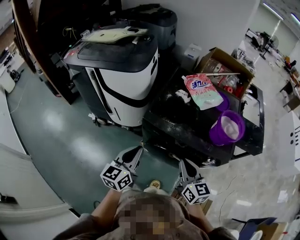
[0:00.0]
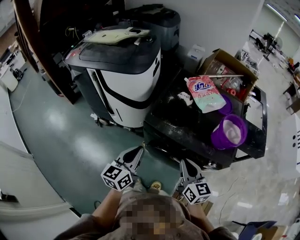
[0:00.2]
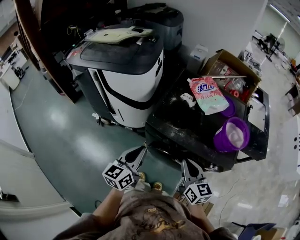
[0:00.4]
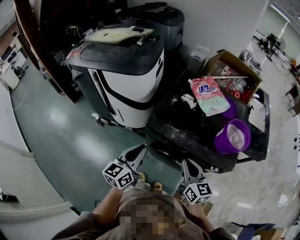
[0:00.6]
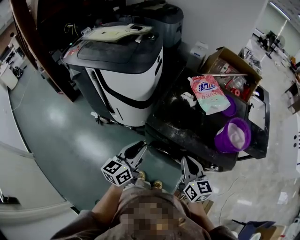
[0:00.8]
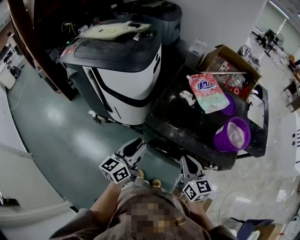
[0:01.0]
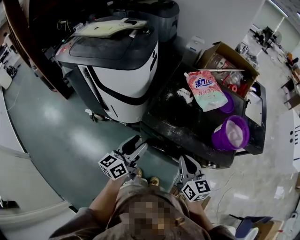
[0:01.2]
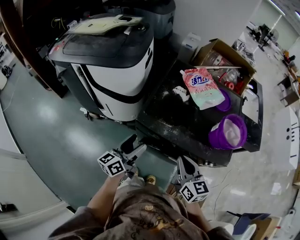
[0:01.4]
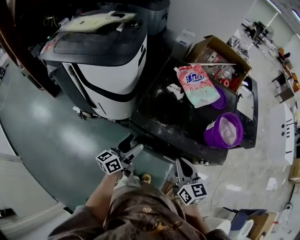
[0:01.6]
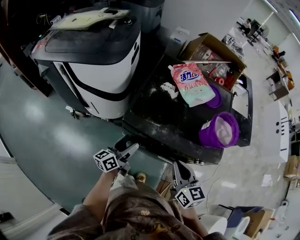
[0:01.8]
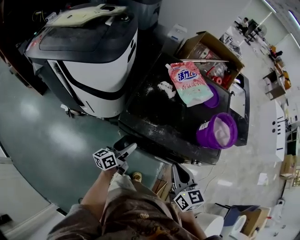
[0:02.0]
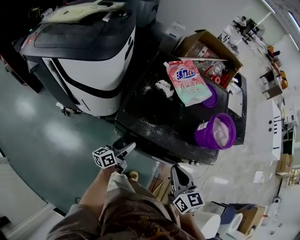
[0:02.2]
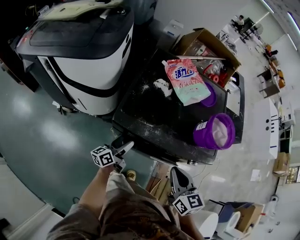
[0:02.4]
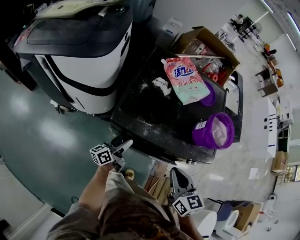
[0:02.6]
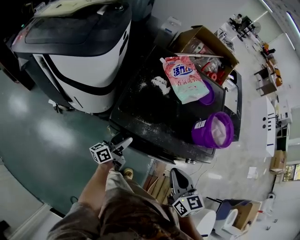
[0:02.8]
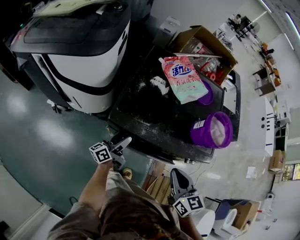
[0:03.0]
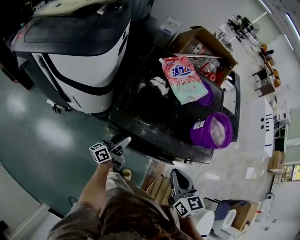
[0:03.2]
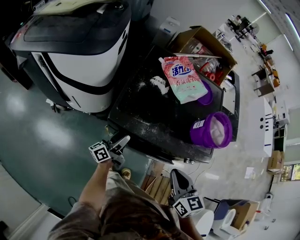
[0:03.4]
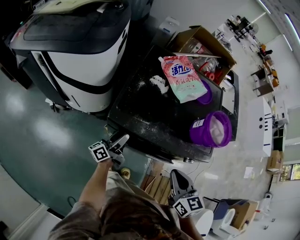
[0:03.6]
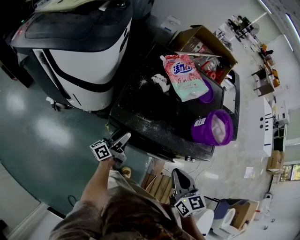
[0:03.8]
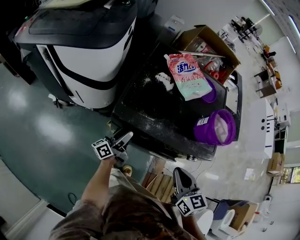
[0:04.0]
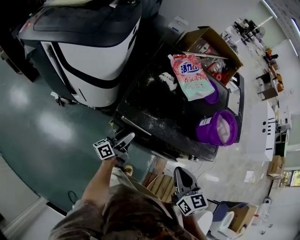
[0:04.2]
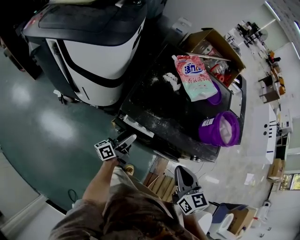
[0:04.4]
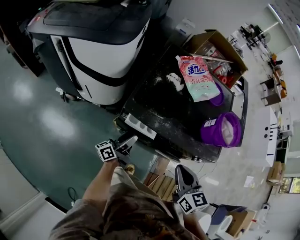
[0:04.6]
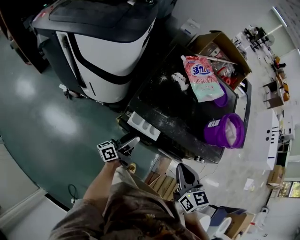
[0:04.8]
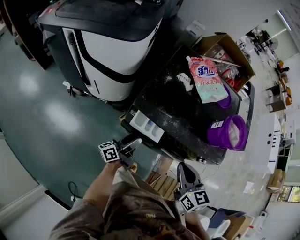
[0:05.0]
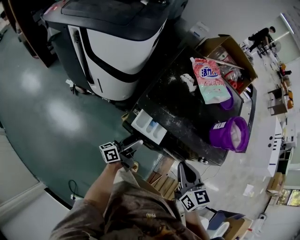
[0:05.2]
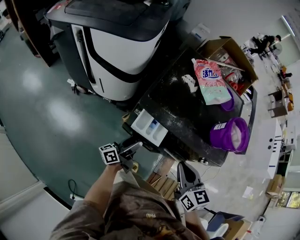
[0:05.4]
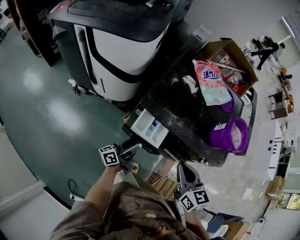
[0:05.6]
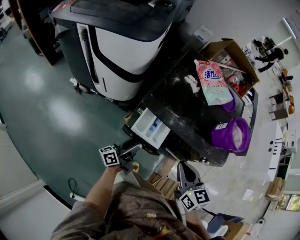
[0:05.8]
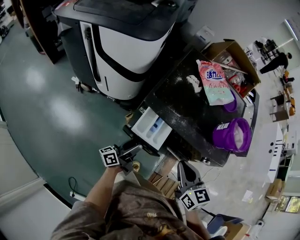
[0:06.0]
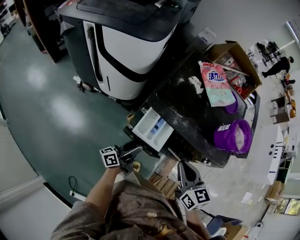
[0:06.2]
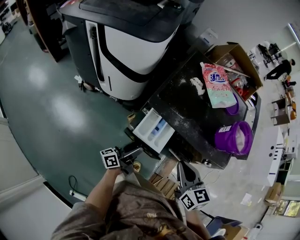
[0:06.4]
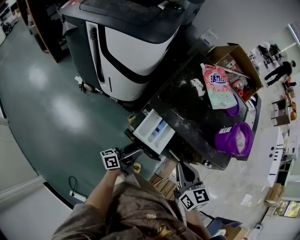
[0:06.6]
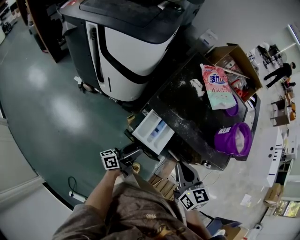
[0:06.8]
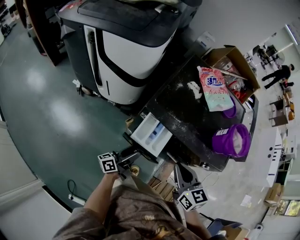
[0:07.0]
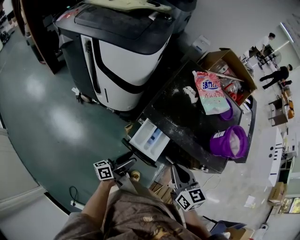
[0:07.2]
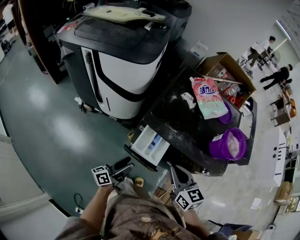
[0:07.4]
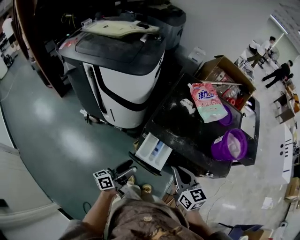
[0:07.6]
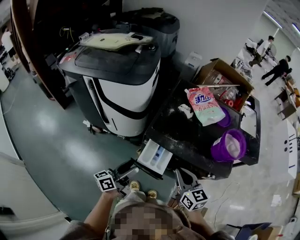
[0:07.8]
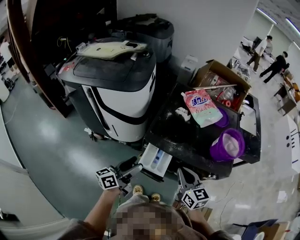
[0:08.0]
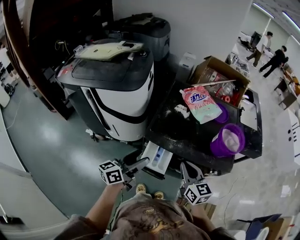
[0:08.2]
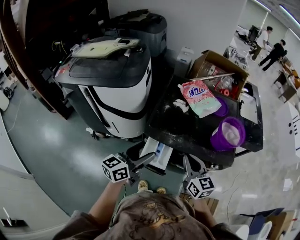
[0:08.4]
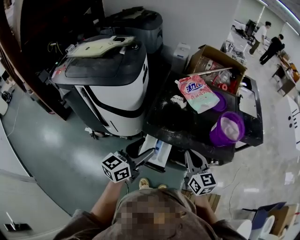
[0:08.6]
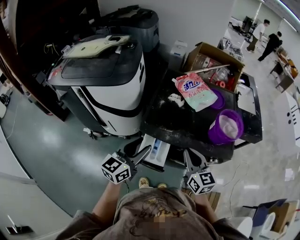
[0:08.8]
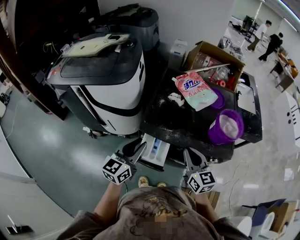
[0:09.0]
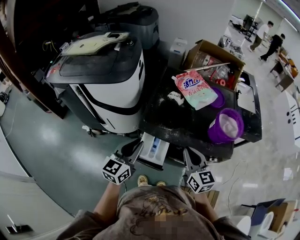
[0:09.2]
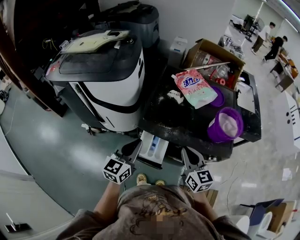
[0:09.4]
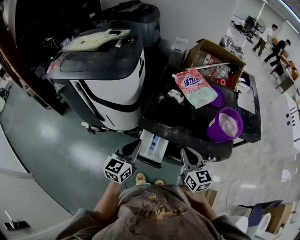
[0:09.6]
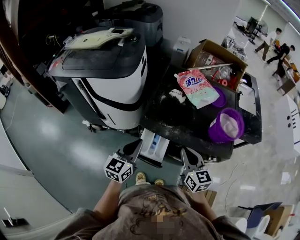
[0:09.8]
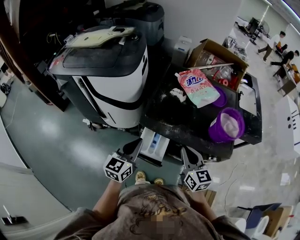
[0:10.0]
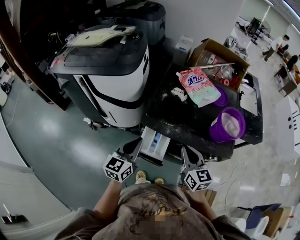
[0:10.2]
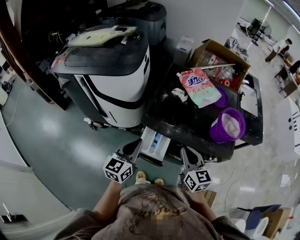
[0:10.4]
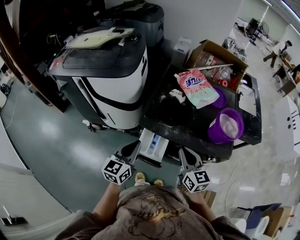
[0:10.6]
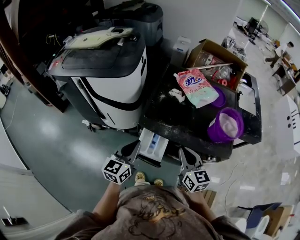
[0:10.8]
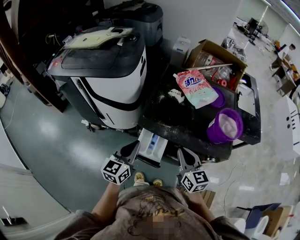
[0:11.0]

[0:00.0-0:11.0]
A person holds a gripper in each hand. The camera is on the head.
0:00.0 to 0:01.6: The left gripper heads downward and forward, covering approximately 15 cm, changes its angle by approximately 30 degrees, and opens its fingers; the right gripper heads forward, covering approximately 5 cm.
0:01.6 to 0:03.2: The left gripper heads downward and forward, covering approximately 15 cm. The right gripper changes place by about 5 cm.
0:03.2 to 0:04.8: The left gripper goes about 5 cm backward.
0:04.8 to 0:06.2: The left gripper goes roughly 10 cm backward.
0:06.2 to 0:07.8: The left gripper travels upward and to the left by roughly 15 cm; the right gripper ends up approximately 5 cm from where it was.
0:07.8 to 0:09.4: The left gripper heads upward and forward, covering about 10 cm, rotates around the line of its fingers by about 40 degrees, clockwise from behind, and closes. The right gripper ends up about 5 cm from where it was.
0:09.4 to 0:11.0: The grippers make only small movements.

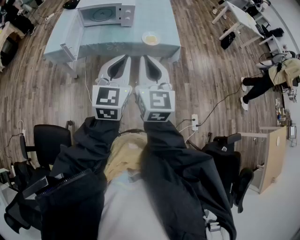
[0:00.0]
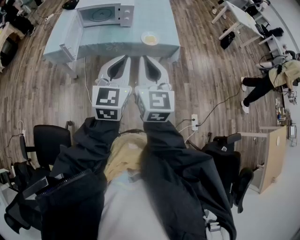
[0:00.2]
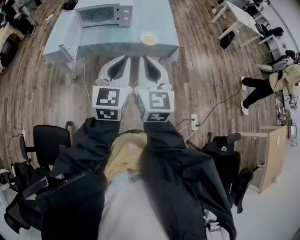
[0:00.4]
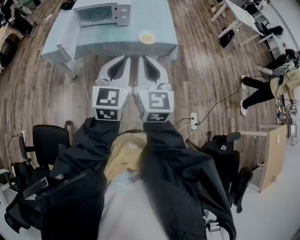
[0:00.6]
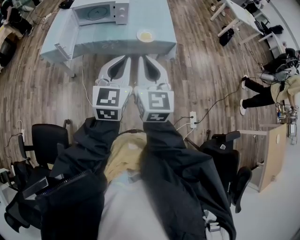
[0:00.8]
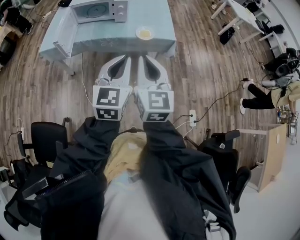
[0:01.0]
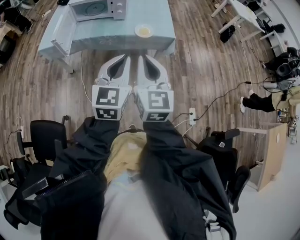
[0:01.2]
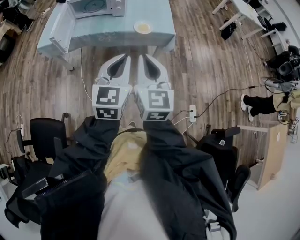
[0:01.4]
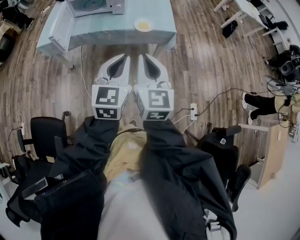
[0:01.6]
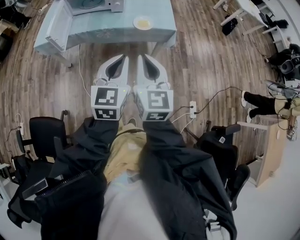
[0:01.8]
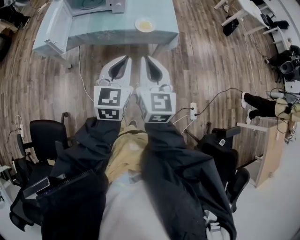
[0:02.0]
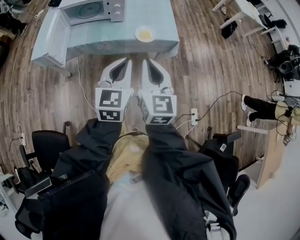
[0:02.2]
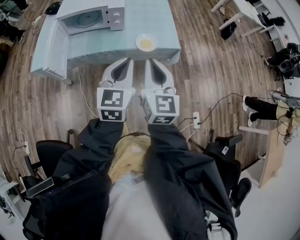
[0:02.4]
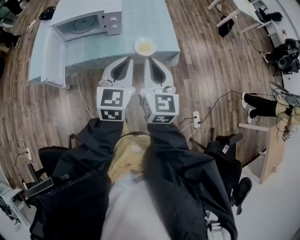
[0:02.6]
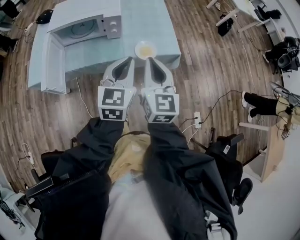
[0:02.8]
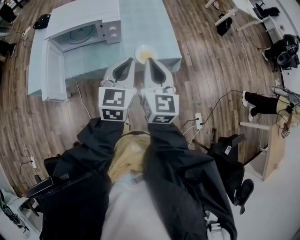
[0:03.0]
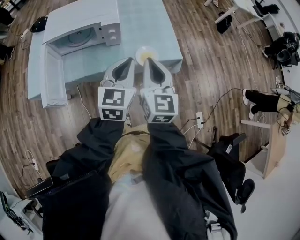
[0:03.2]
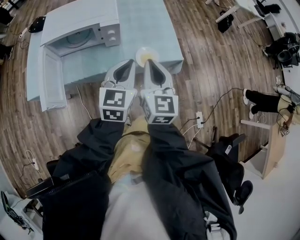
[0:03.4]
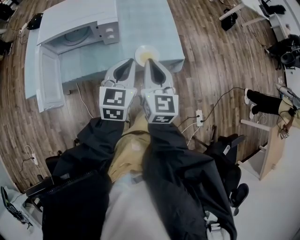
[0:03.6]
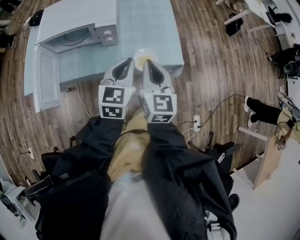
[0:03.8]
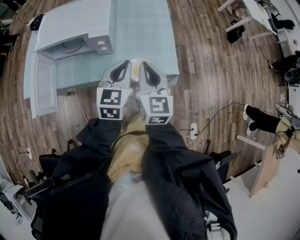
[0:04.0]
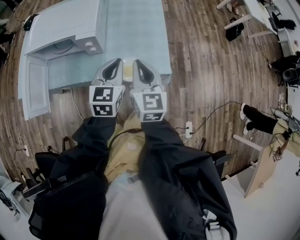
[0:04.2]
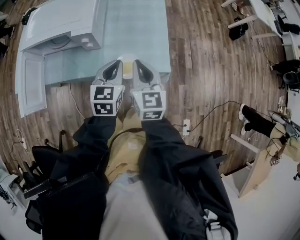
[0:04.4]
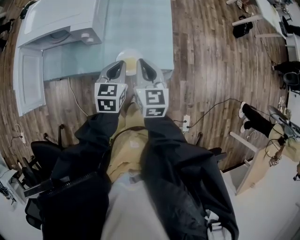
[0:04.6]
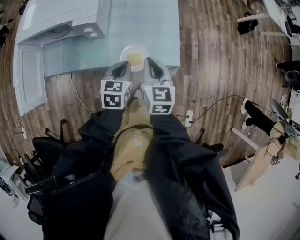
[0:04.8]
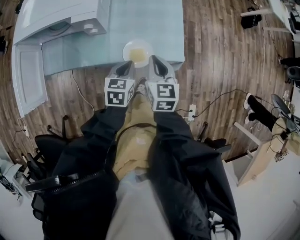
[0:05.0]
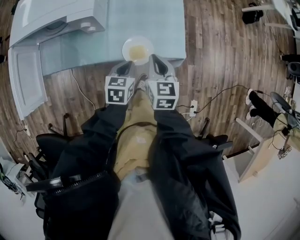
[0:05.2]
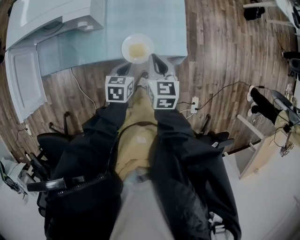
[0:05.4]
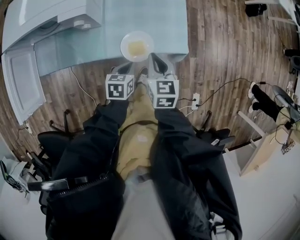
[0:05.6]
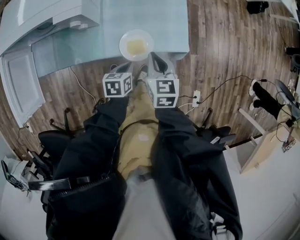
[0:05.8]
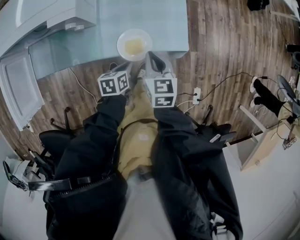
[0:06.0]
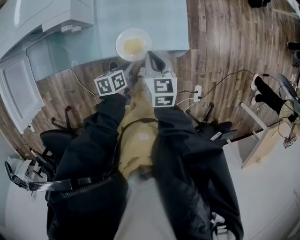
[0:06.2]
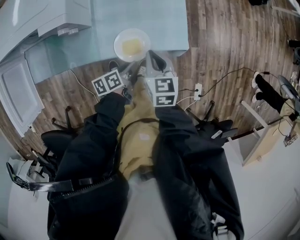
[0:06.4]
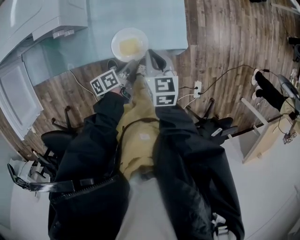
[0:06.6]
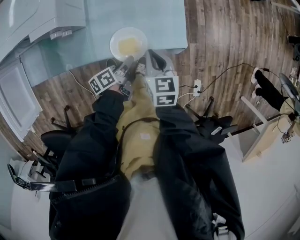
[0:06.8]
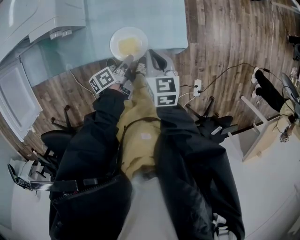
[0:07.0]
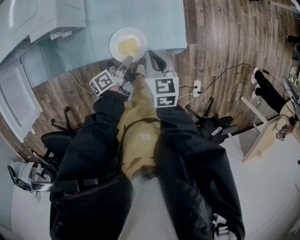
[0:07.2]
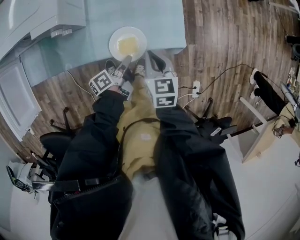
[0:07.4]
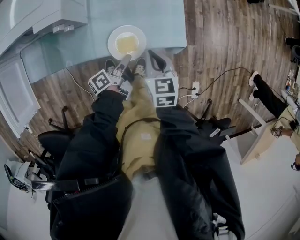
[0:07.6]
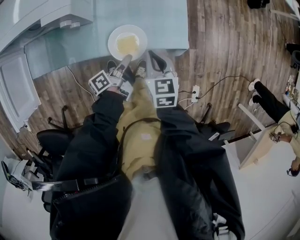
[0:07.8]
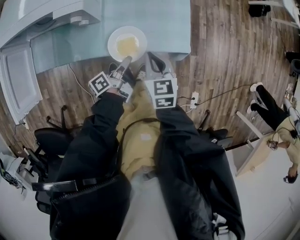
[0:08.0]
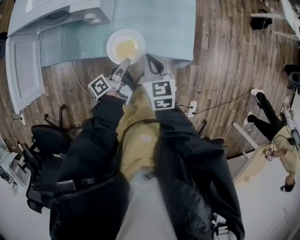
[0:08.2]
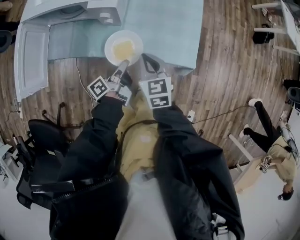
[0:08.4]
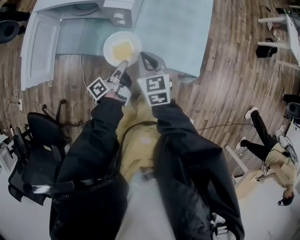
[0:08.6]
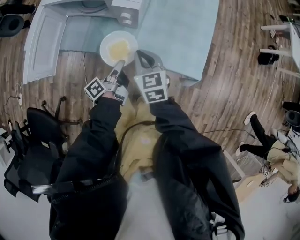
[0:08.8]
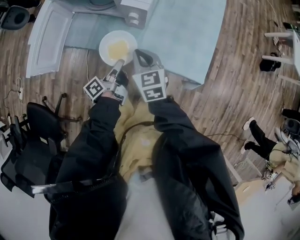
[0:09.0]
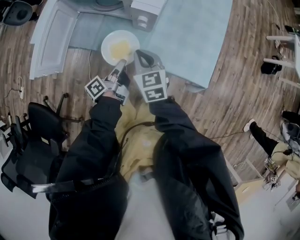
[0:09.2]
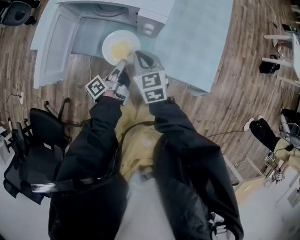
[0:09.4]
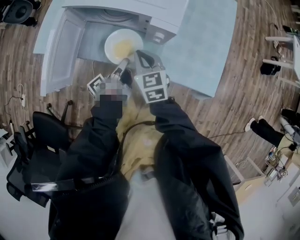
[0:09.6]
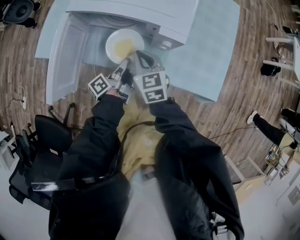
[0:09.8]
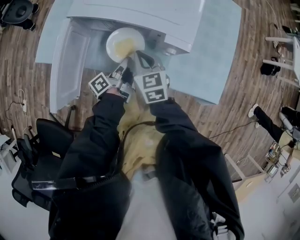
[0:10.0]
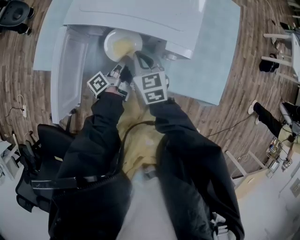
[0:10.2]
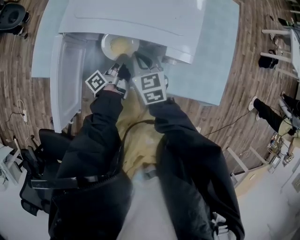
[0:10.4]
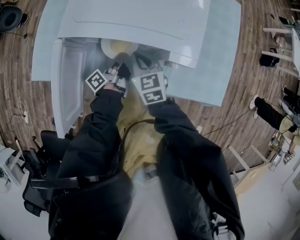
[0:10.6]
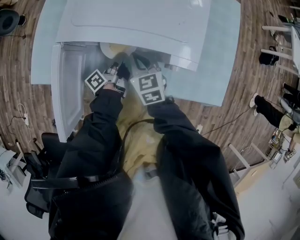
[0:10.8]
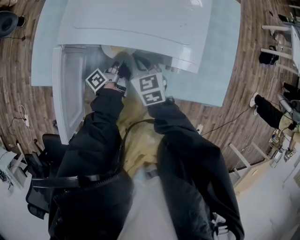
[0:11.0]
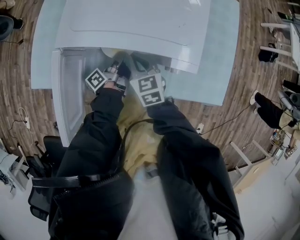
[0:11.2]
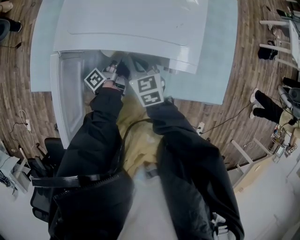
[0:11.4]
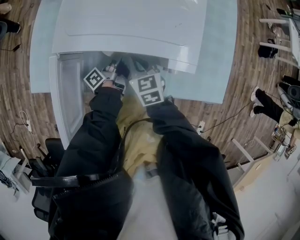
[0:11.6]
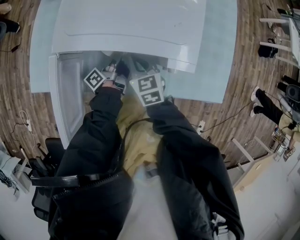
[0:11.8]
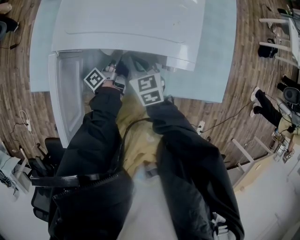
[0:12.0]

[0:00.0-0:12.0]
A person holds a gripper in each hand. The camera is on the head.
0:00.0 to 0:01.6: The grippers both shift to the right by about 5 cm.
0:01.6 to 0:03.0: The two grippers go roughly 30 cm forward.
0:03.0 to 0:04.4: Both grippers move forward, downward and to the right, roughly 20 cm.
0:04.4 to 0:06.0: The two grippers go some 20 cm downward. The right gripper turns by about 20 degrees. The left gripper swivels about 50 degrees.
0:06.0 to 0:07.6: The left gripper tilts its fingers approximately 30 degrees upward, and opens, then closes again.
0:07.6 to 0:09.0: The left gripper moves about 20 cm, and turns by approximately 30 degrees. The right gripper ends up roughly 25 cm from where it was, and swivels roughly 30 degrees.
0:09.0 to 0:10.4: The two grippers go roughly 25 cm forward and to the left.
0:10.4 to 0:12.0: The left gripper shifts by some 5 cm.

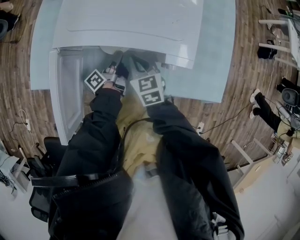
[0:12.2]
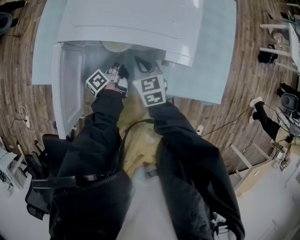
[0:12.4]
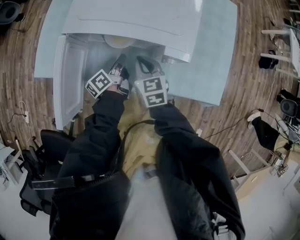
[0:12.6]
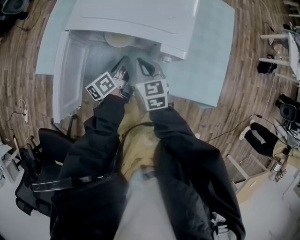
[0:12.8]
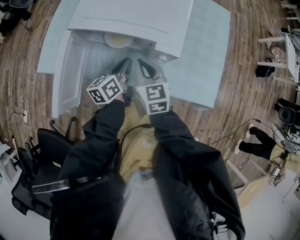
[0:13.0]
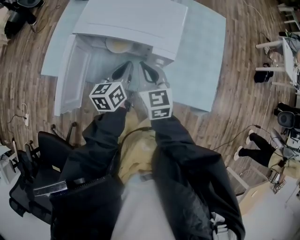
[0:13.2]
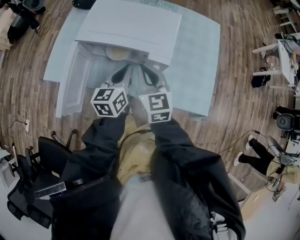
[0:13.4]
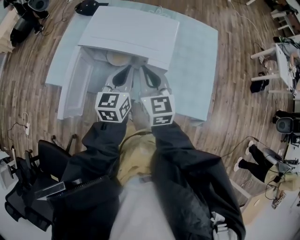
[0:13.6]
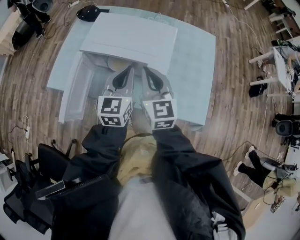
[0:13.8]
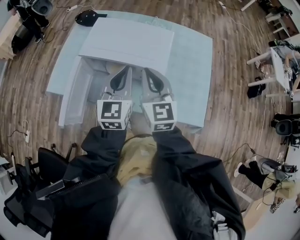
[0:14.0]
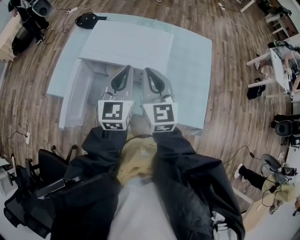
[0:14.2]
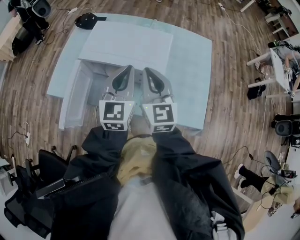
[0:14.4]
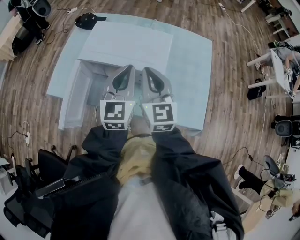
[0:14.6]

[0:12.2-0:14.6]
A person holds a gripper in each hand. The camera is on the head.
0:12.2 to 0:13.4: Both grippers travel together upward, approximately 20 cm. The left gripper rotates around the line of its fingers by some 70 degrees, clockwise from behind, and closes up. The right gripper turns by some 20 degrees.
0:13.4 to 0:14.6: Both grippers move upward, approximately 10 cm. The left gripper changes its angle by about 30 degrees.
